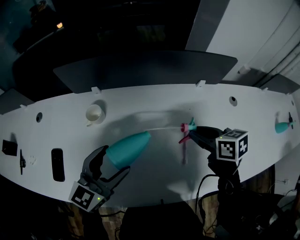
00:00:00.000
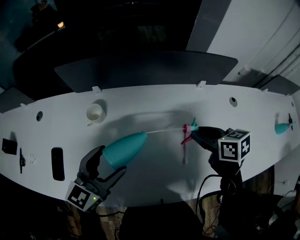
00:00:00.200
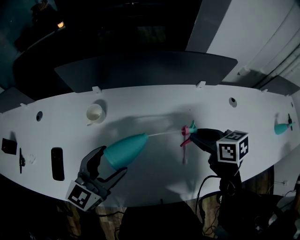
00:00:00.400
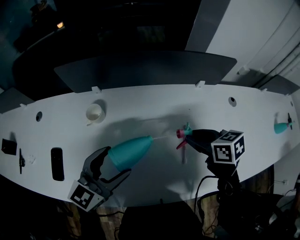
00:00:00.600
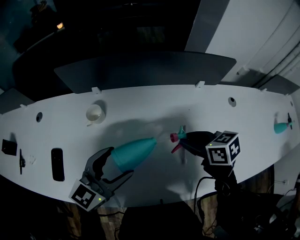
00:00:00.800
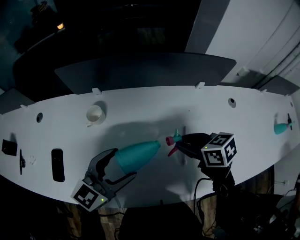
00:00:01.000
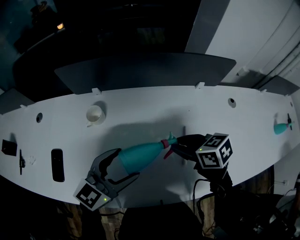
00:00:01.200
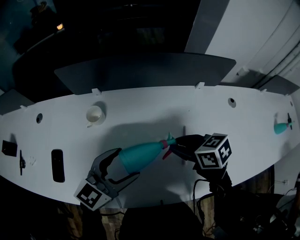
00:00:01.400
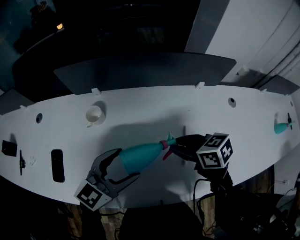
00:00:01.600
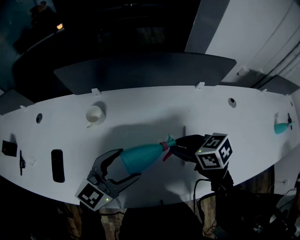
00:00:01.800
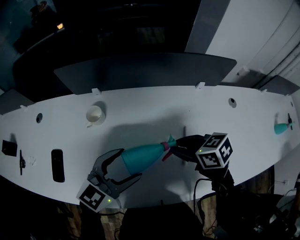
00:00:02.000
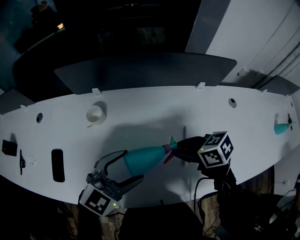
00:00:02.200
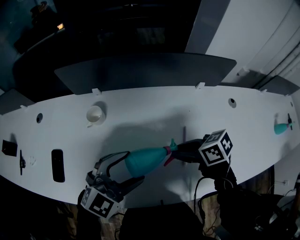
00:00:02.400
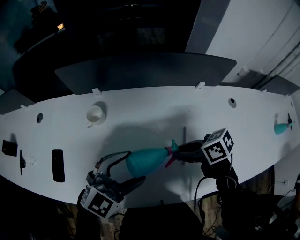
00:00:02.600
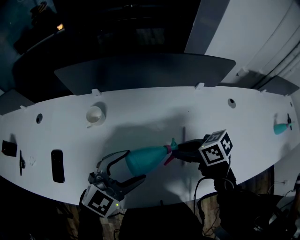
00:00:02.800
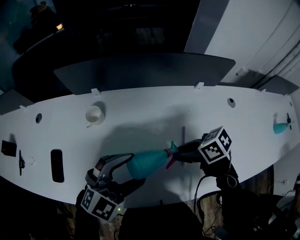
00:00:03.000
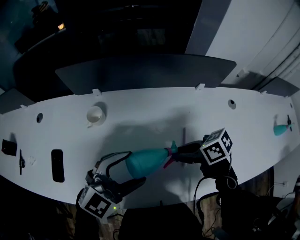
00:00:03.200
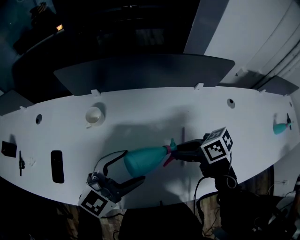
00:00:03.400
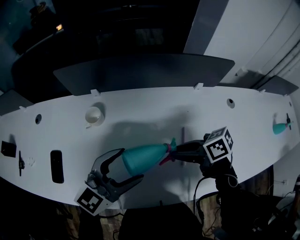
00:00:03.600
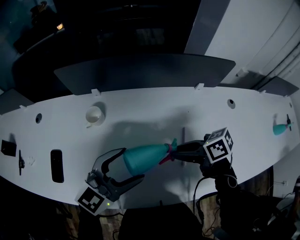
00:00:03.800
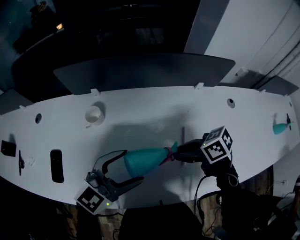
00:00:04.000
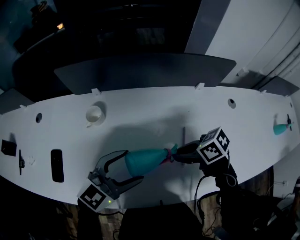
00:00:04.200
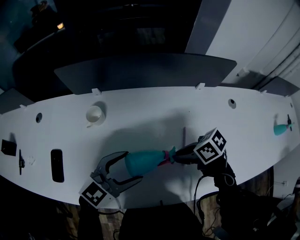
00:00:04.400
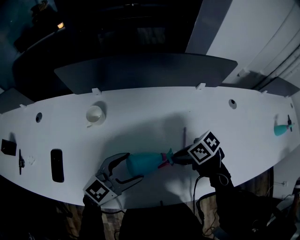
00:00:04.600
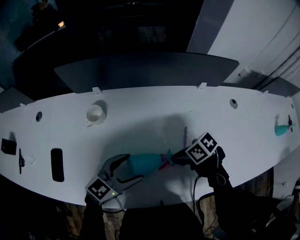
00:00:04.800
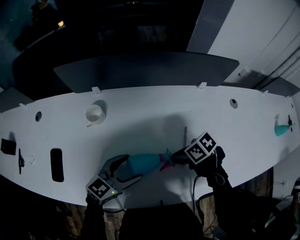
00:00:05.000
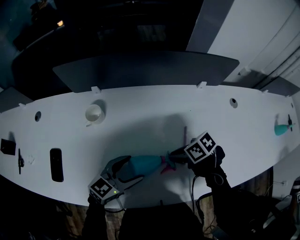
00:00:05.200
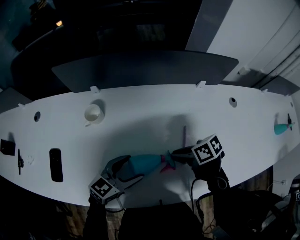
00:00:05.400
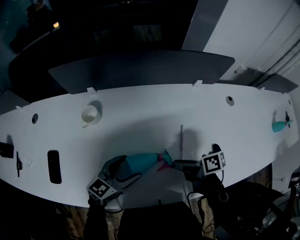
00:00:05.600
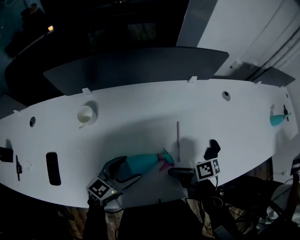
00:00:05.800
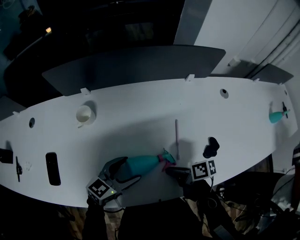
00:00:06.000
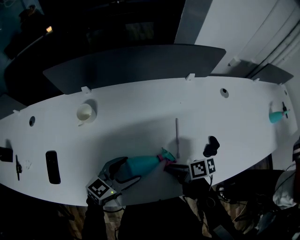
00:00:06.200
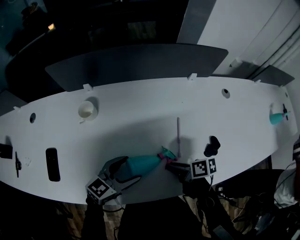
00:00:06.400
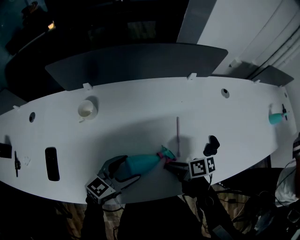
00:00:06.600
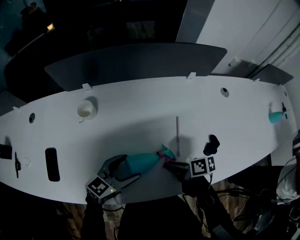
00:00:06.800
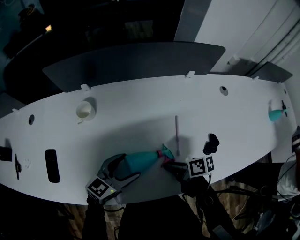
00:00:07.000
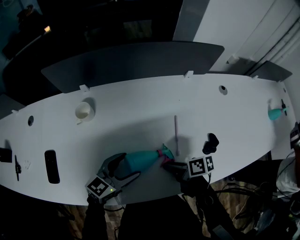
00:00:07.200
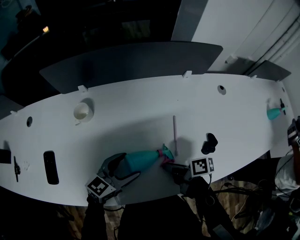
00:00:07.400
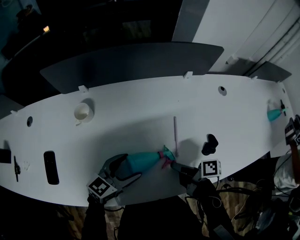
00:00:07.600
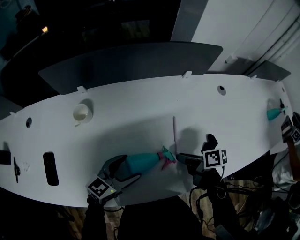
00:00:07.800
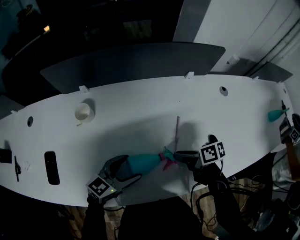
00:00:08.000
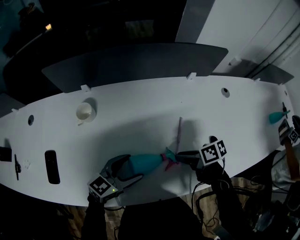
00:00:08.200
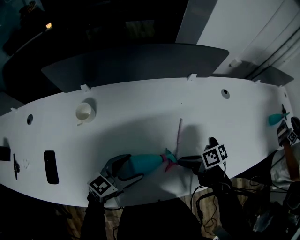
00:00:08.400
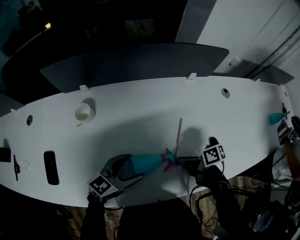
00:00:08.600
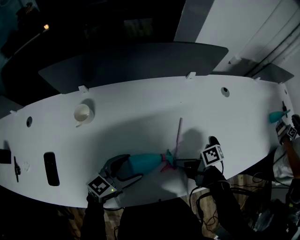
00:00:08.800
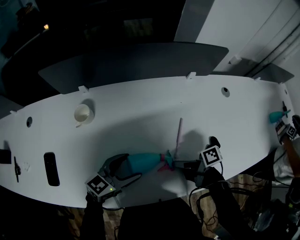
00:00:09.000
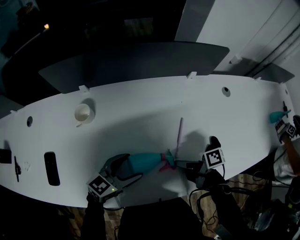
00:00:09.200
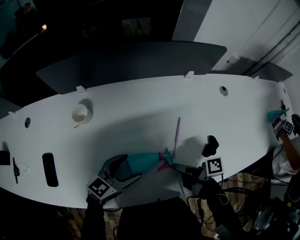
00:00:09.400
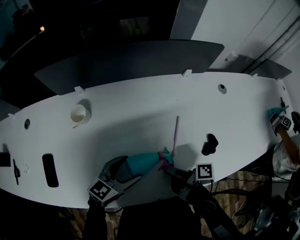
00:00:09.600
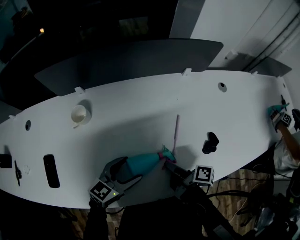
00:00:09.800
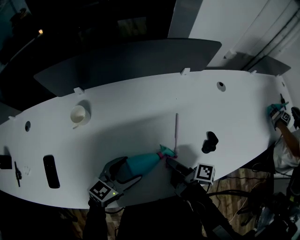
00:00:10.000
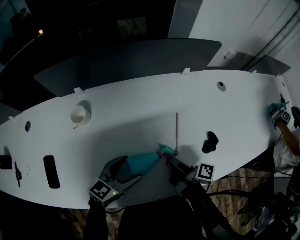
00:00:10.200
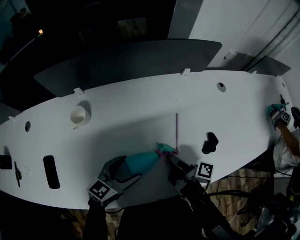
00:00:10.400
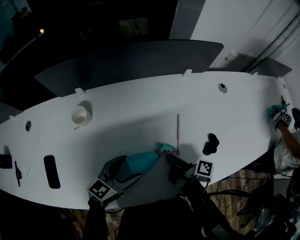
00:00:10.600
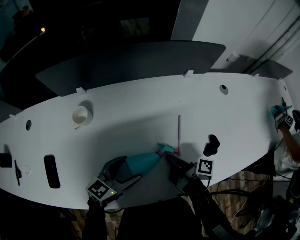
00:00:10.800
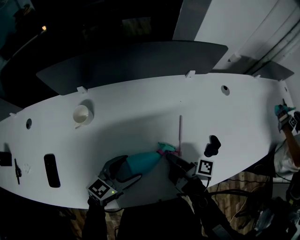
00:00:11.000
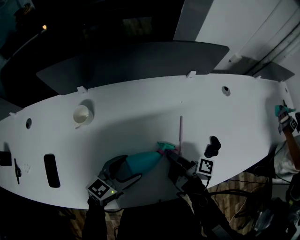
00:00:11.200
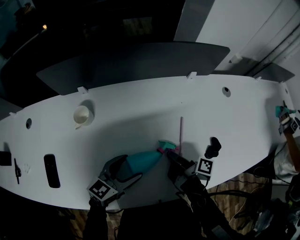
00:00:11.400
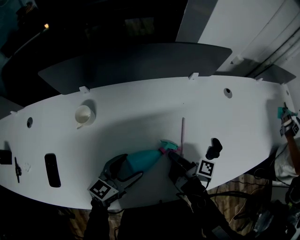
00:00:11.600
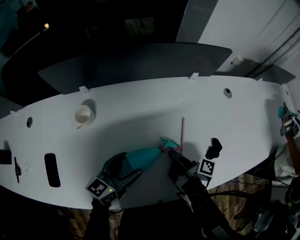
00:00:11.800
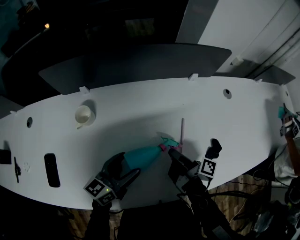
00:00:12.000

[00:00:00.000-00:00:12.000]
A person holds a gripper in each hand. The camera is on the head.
00:00:00.000 to 00:00:01.600: The right gripper is displaced to the left by approximately 10 cm.
00:00:01.600 to 00:00:03.000: The left gripper rotates roughly 30 degrees.
00:00:03.000 to 00:00:04.400: The left gripper rotates some 30 degrees.
00:00:04.400 to 00:00:06.000: The right gripper moves about 10 cm, and rotates roughly 40 degrees; the left gripper heads downward, covering roughly 10 cm.
00:00:06.000 to 00:00:07.600: The grippers move only a little.
00:00:09.000 to 00:00:10.400: The right gripper rotates some 40 degrees.
00:00:10.400 to 00:00:12.000: The right gripper moves approximately 5 cm, and closes up. The left gripper moves about 5 cm, and turns by some 20 degrees.

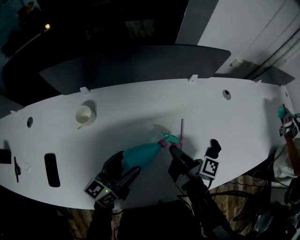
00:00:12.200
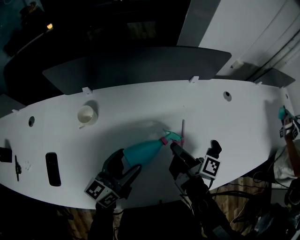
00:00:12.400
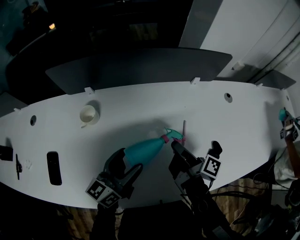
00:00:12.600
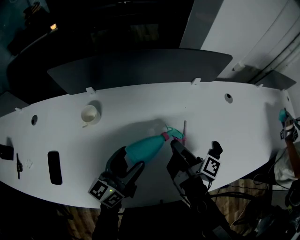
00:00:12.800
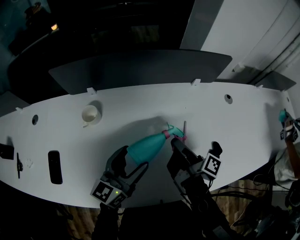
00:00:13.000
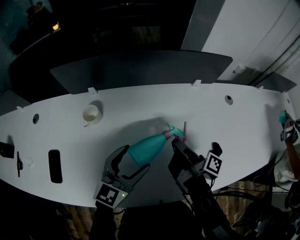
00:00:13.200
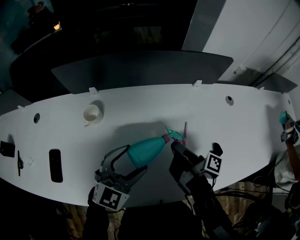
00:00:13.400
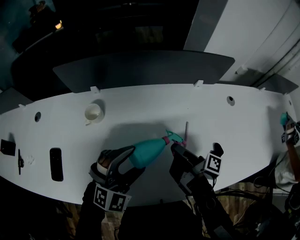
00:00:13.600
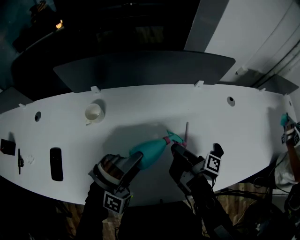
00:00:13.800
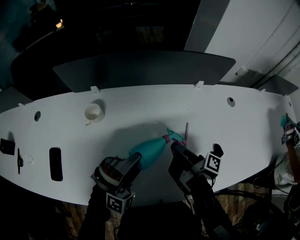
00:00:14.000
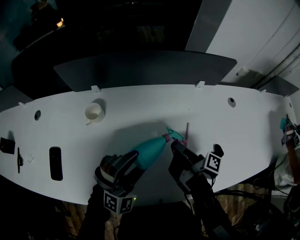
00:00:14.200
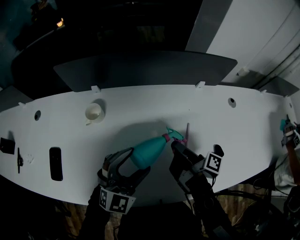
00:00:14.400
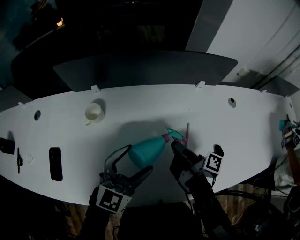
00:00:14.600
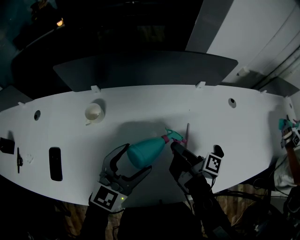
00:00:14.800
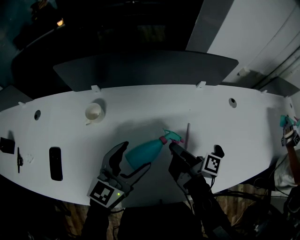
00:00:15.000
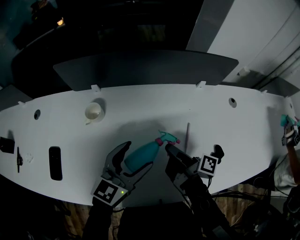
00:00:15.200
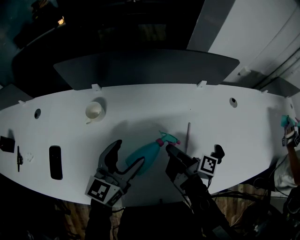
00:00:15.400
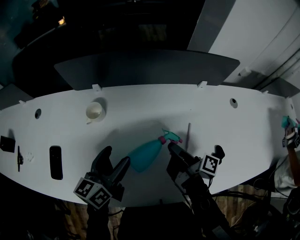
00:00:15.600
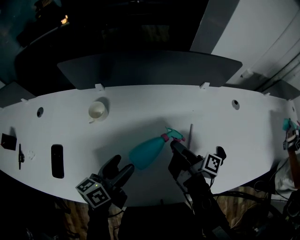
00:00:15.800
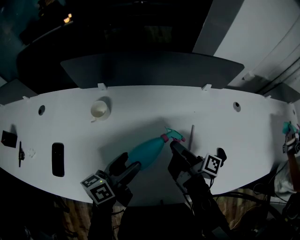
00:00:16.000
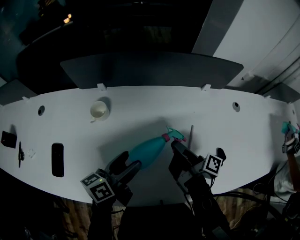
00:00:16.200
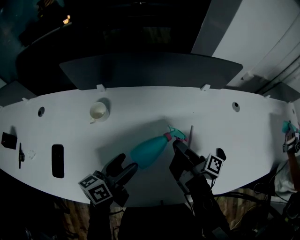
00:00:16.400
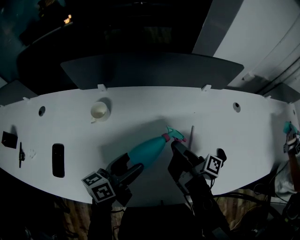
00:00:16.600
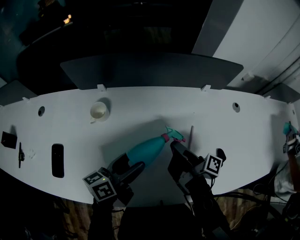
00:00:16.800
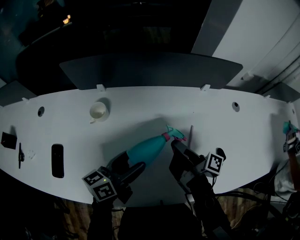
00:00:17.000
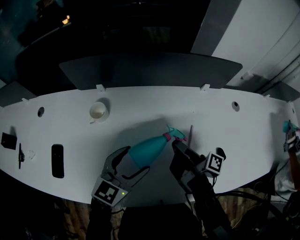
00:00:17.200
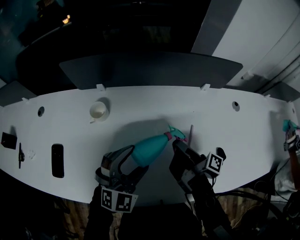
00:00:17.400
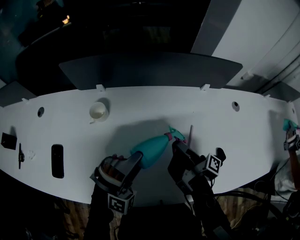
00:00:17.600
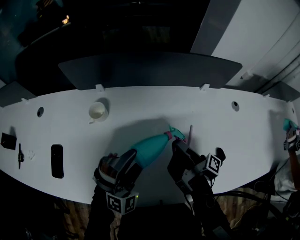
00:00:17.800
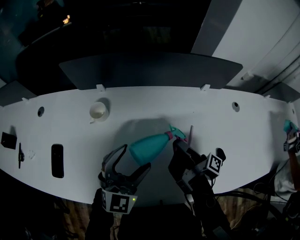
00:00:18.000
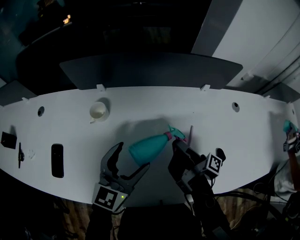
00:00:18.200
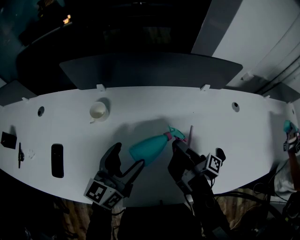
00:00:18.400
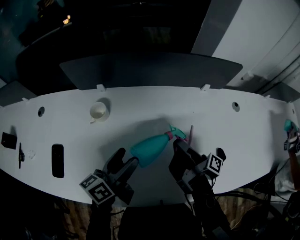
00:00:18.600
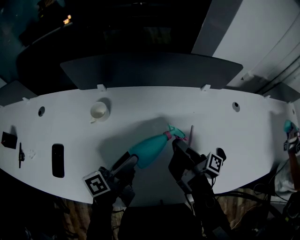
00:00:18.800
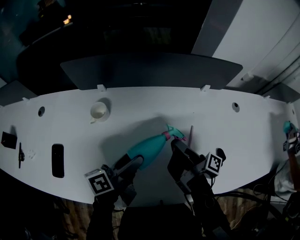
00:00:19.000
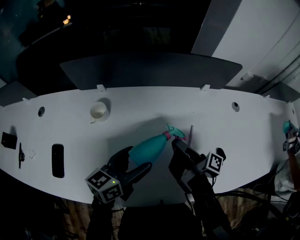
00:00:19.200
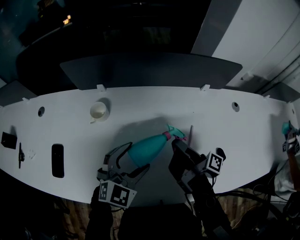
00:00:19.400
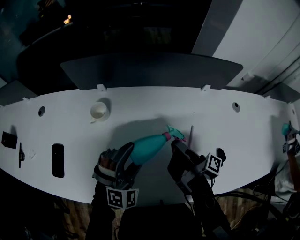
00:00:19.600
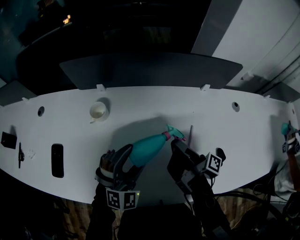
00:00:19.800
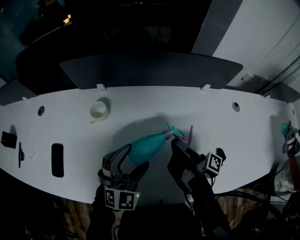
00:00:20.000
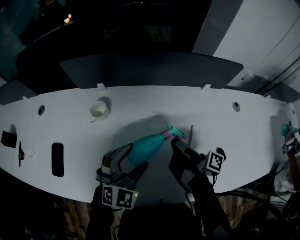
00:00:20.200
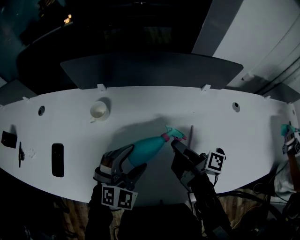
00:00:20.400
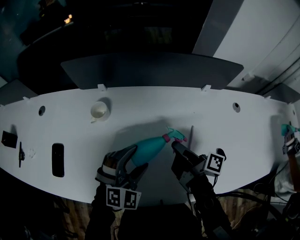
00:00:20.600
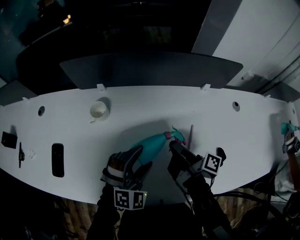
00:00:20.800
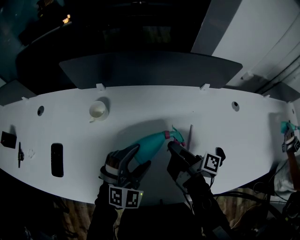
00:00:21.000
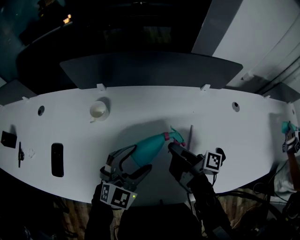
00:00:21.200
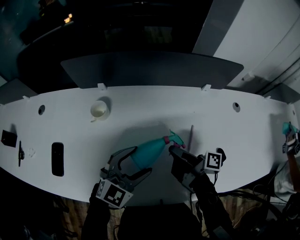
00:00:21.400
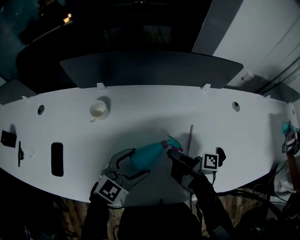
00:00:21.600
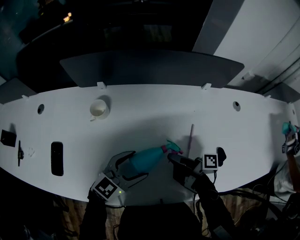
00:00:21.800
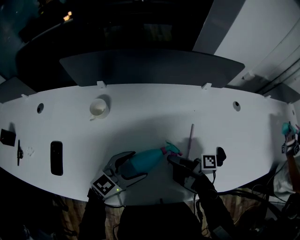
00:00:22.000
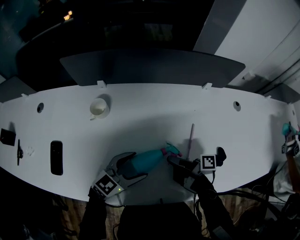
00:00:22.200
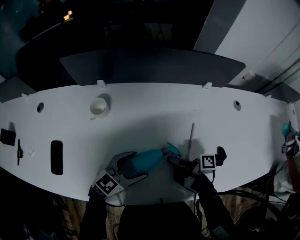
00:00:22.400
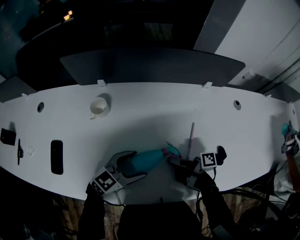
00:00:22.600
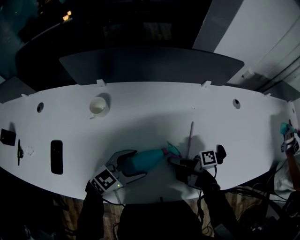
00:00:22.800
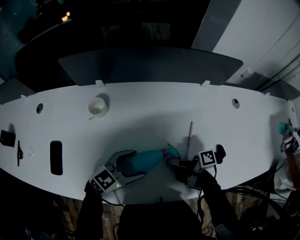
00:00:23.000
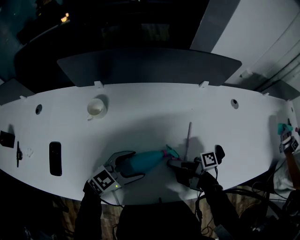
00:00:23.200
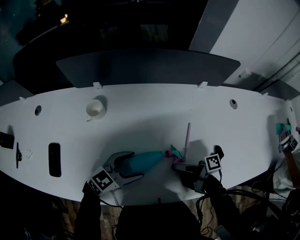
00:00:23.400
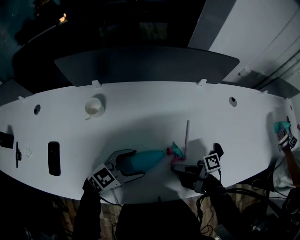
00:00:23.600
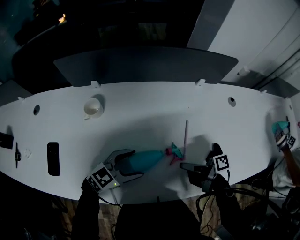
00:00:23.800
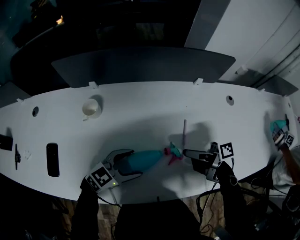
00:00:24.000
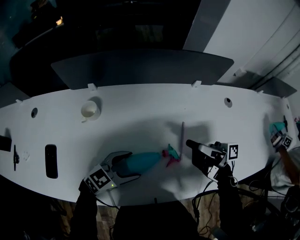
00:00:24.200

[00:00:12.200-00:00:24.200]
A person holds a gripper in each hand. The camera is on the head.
00:00:12.200 to 00:00:13.800: The left gripper moves some 5 cm, and rolls clockwise, seen from behind, by roughly 110 degrees.
00:00:13.800 to 00:00:15.200: The left gripper rotates around the line of its fingers by about 90 degrees, counterclockwise from behind.
00:00:15.200 to 00:00:16.600: The left gripper moves some 5 cm, and rolls counterclockwise, seen from behind, by about 40 degrees.
00:00:16.600 to 00:00:18.200: The left gripper moves upward, approximately 5 cm, and twists some 50 degrees clockwise, seen from behind.
00:00:18.200 to 00:00:19.800: The left gripper shifts approximately 5 cm downward, and rotates around the line of its fingers by roughly 50 degrees, clockwise from behind.
00:00:19.800 to 00:00:21.200: The left gripper changes its angle by about 20 degrees.
00:00:21.200 to 00:00:22.600: The left gripper is displaced downward by roughly 5 cm, and turns by approximately 40 degrees; the right gripper goes some 10 cm downward and backward, and changes its angle by approximately 20 degrees.
00:00:22.600 to 00:00:24.200: The right gripper travels upward by about 15 cm, changes its angle by approximately 30 degrees, and opens up.
